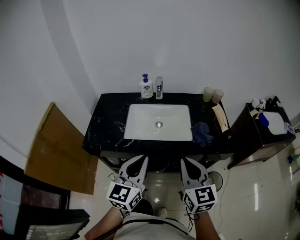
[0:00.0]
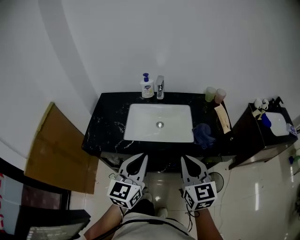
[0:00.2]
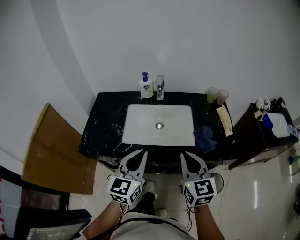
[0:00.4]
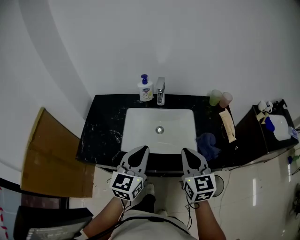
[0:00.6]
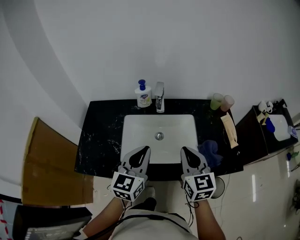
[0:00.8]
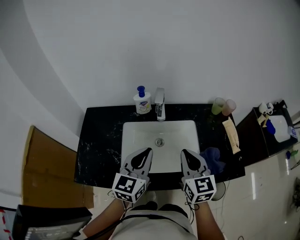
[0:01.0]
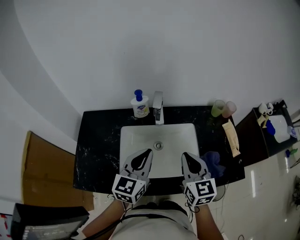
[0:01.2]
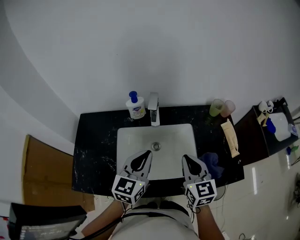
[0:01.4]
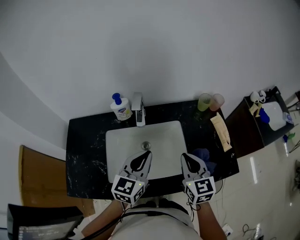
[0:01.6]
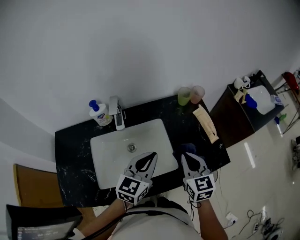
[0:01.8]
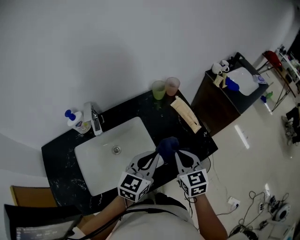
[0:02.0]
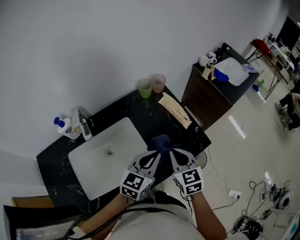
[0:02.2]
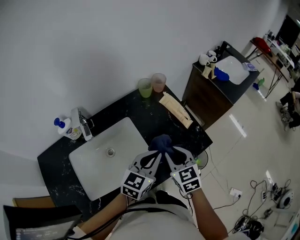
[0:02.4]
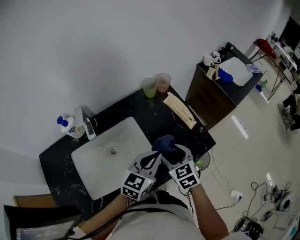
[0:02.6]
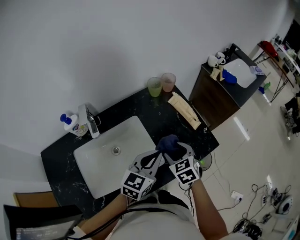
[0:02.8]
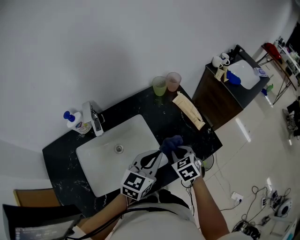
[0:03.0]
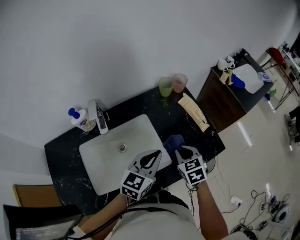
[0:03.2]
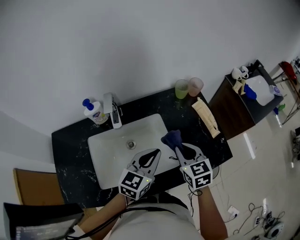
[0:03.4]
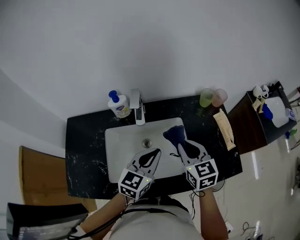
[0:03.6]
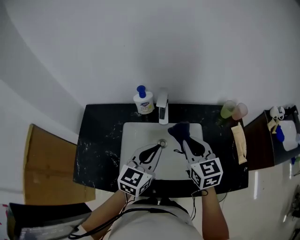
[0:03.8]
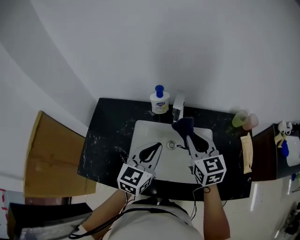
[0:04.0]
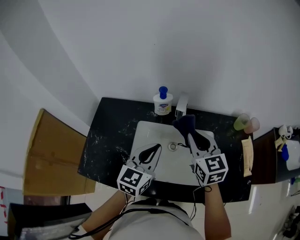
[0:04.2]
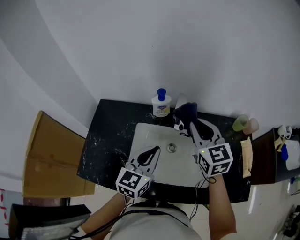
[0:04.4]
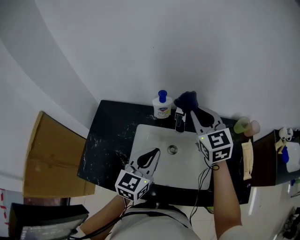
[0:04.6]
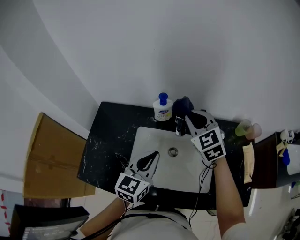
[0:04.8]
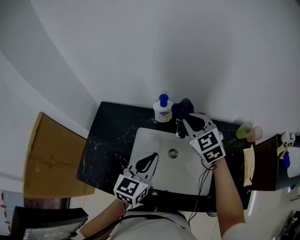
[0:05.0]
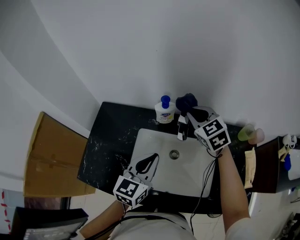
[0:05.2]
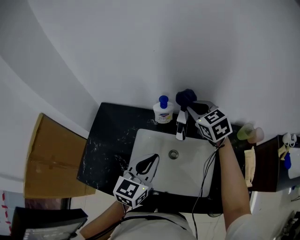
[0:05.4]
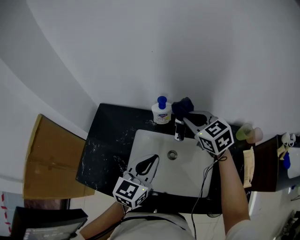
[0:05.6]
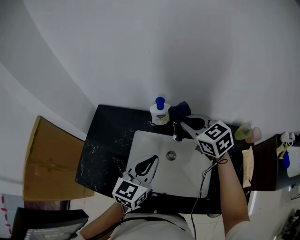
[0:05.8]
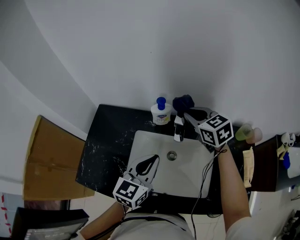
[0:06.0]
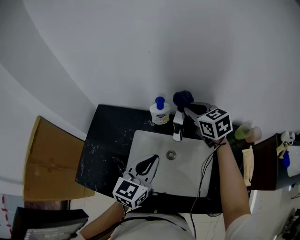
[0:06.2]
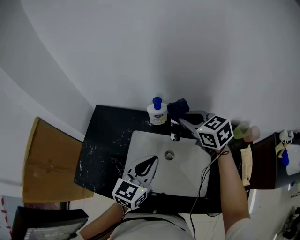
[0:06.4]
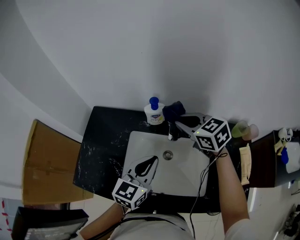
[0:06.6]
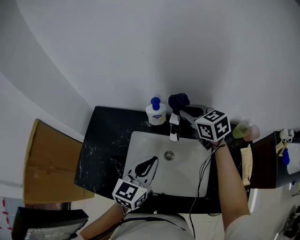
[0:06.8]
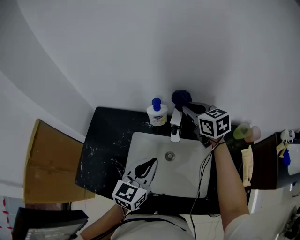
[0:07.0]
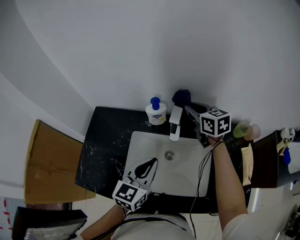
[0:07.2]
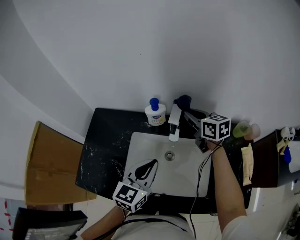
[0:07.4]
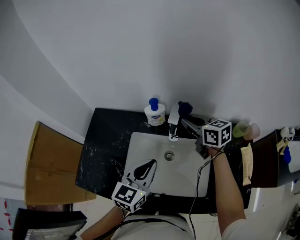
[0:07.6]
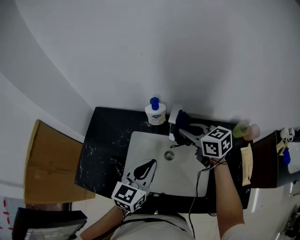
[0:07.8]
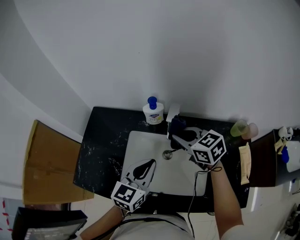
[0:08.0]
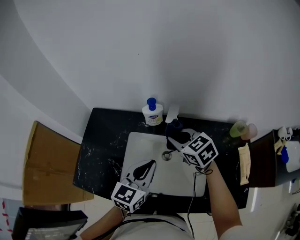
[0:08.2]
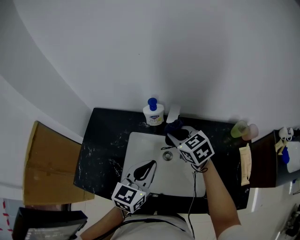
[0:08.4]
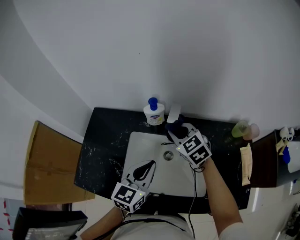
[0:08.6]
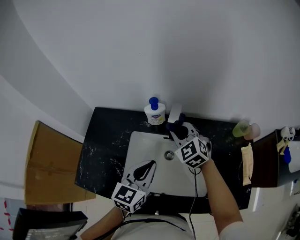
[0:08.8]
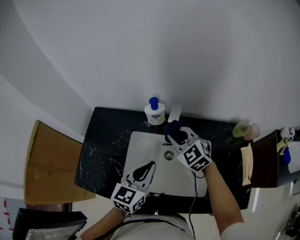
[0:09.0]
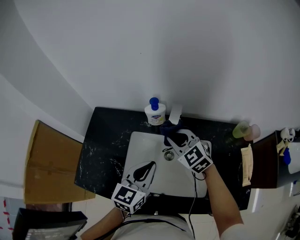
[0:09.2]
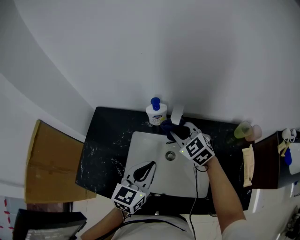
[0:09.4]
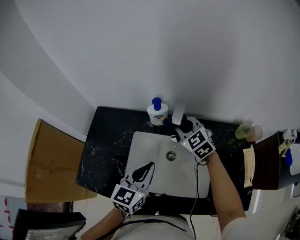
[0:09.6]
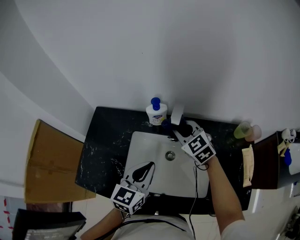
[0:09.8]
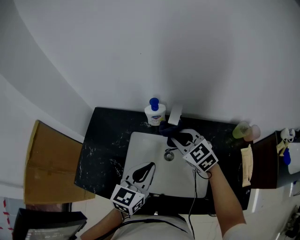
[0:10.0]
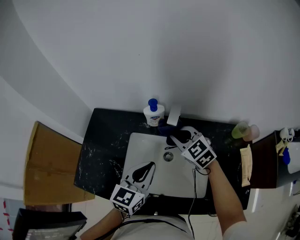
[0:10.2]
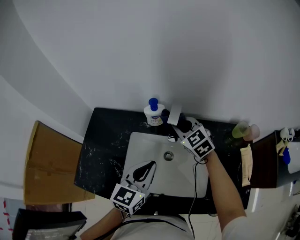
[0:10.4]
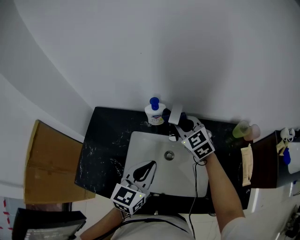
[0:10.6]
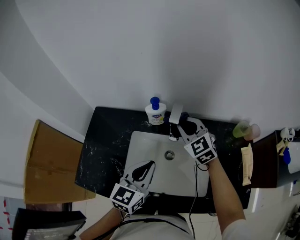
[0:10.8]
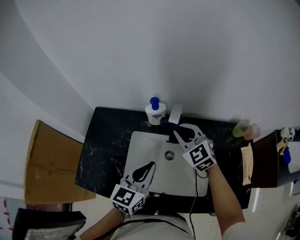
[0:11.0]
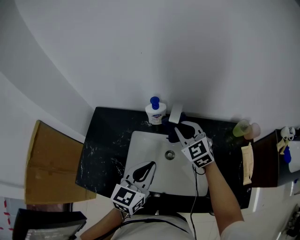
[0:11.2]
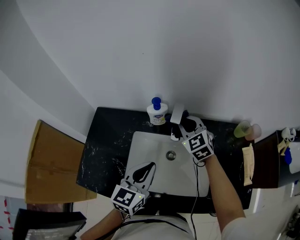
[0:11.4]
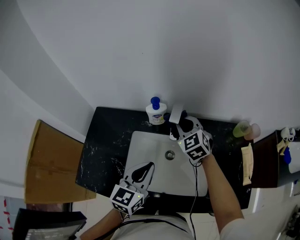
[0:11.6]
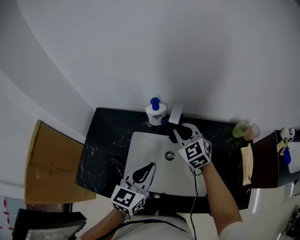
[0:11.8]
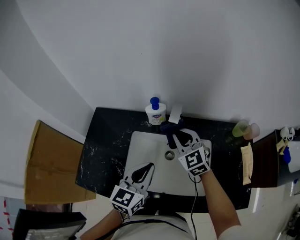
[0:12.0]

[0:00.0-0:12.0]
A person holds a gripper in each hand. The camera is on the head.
0:00.0 to 0:01.6: Both grippers move forward, about 30 cm.
0:01.6 to 0:03.0: The right gripper is displaced downward by some 15 cm, points its fingers about 30 degrees further downward, and opens, then closes once more; the left gripper changes place by about 20 cm, and swivels approximately 30 degrees.
0:03.0 to 0:04.4: The right gripper ends up about 35 cm from where it was, and angles its fingers upward, by about 40 degrees. Meanwhile the left gripper changes place by roughly 30 cm, and changes its angle by some 40 degrees.
0:04.4 to 0:06.0: The right gripper swings forward and backward, some 15 cm each way, with 2 reversals, and turns by about 20 degrees.
0:06.0 to 0:07.6: The right gripper moves forward and backward over some 5 cm, changing direction 2 times, and swivels some 20 degrees.
0:07.6 to 0:09.0: The right gripper goes some 10 cm to the left and backward, and twists approximately 40 degrees counterclockwise, seen from behind.
0:09.0 to 0:10.4: The right gripper swings forward and backward, about 5 cm each way, with 2 reversals.
0:10.4 to 0:12.0: The right gripper goes forward and backward, roughly 5 cm each way, reversing 2 times.

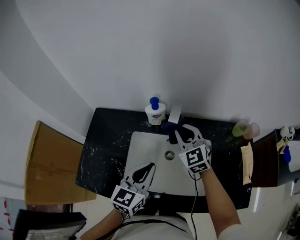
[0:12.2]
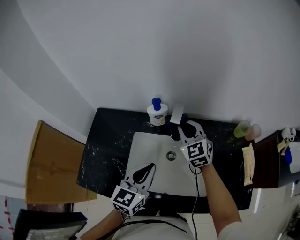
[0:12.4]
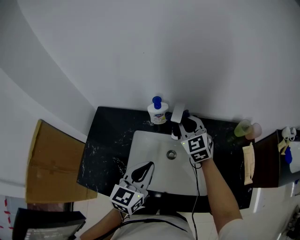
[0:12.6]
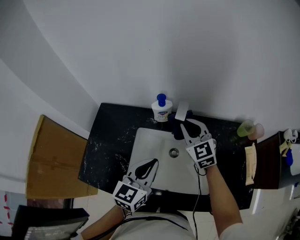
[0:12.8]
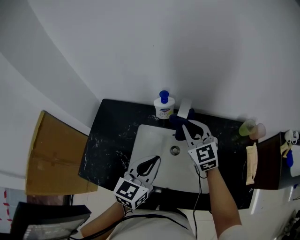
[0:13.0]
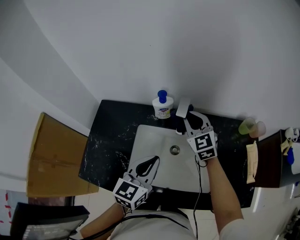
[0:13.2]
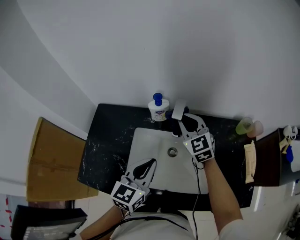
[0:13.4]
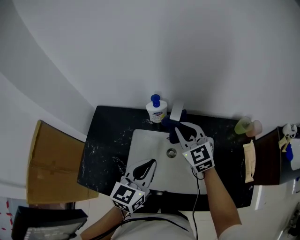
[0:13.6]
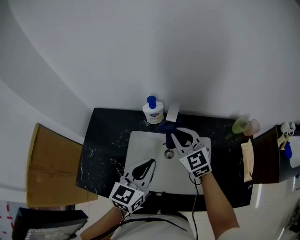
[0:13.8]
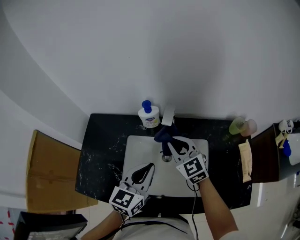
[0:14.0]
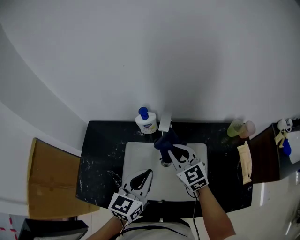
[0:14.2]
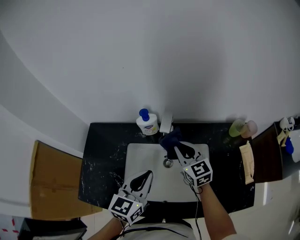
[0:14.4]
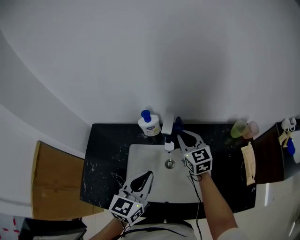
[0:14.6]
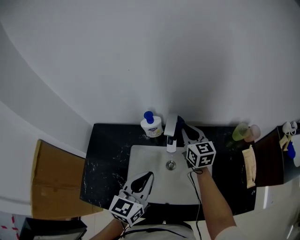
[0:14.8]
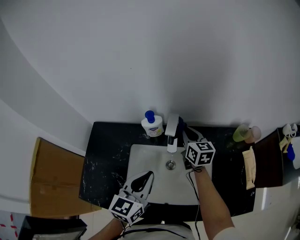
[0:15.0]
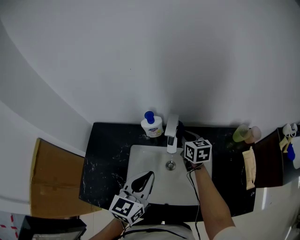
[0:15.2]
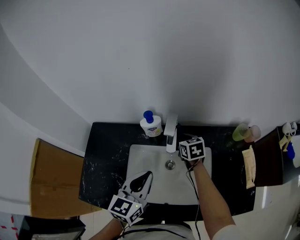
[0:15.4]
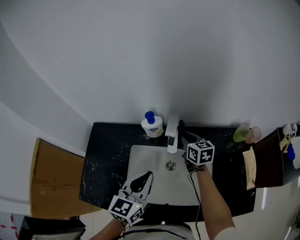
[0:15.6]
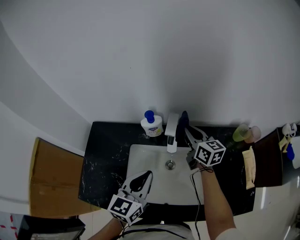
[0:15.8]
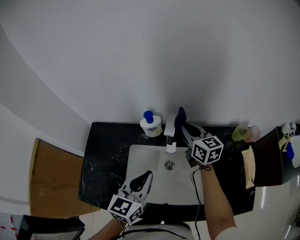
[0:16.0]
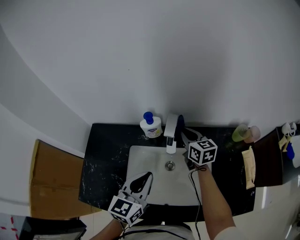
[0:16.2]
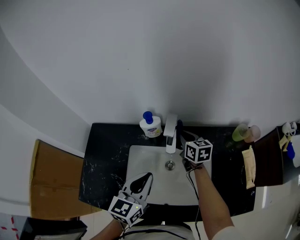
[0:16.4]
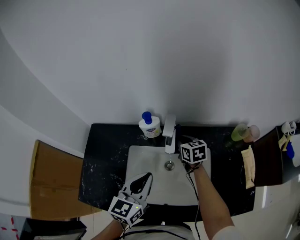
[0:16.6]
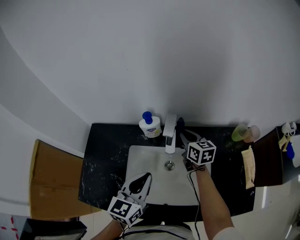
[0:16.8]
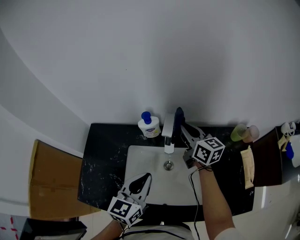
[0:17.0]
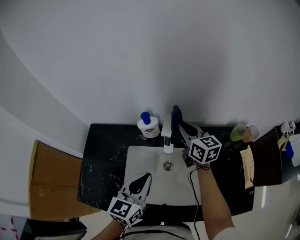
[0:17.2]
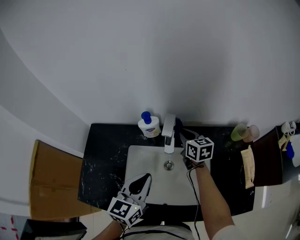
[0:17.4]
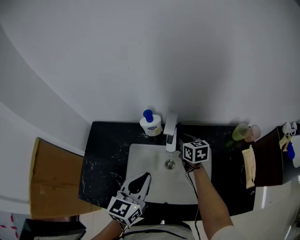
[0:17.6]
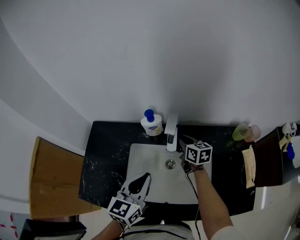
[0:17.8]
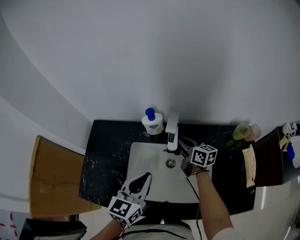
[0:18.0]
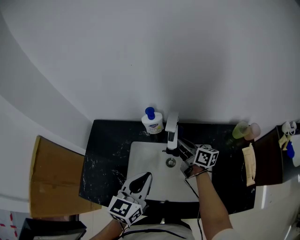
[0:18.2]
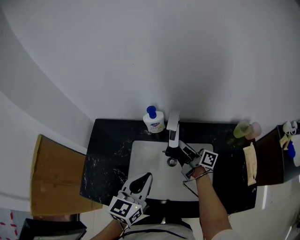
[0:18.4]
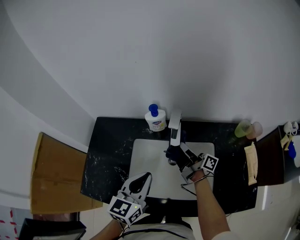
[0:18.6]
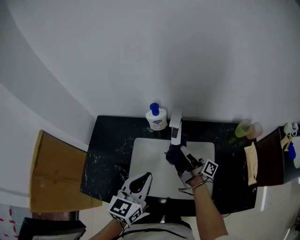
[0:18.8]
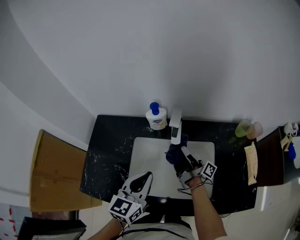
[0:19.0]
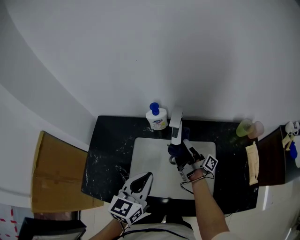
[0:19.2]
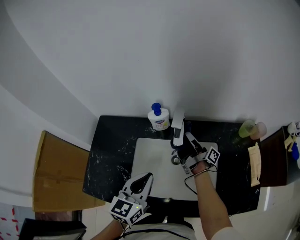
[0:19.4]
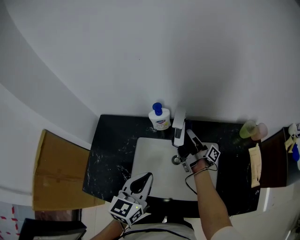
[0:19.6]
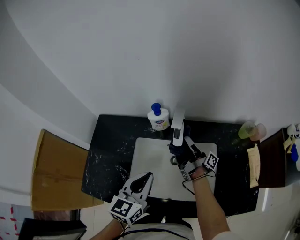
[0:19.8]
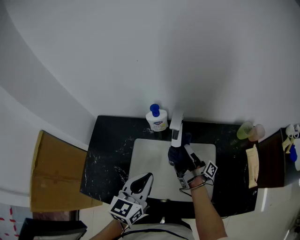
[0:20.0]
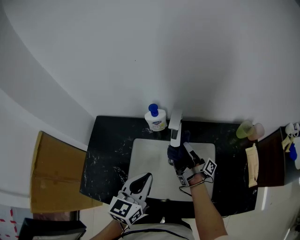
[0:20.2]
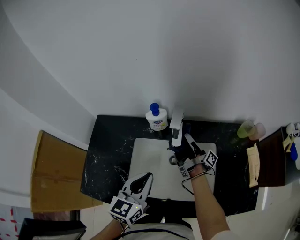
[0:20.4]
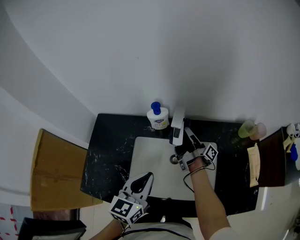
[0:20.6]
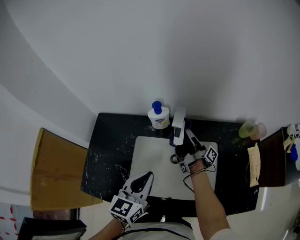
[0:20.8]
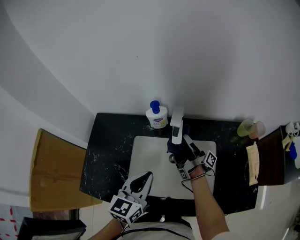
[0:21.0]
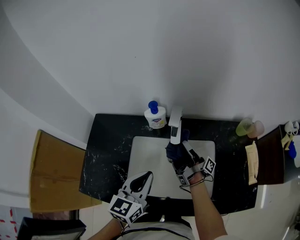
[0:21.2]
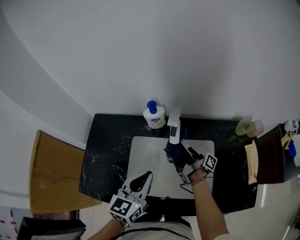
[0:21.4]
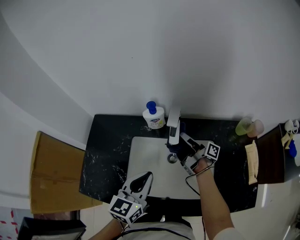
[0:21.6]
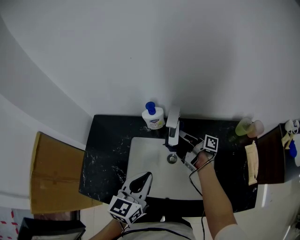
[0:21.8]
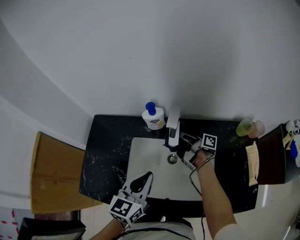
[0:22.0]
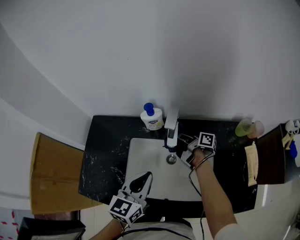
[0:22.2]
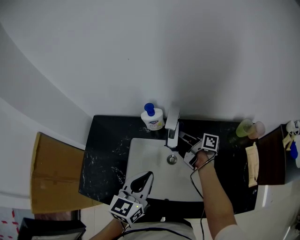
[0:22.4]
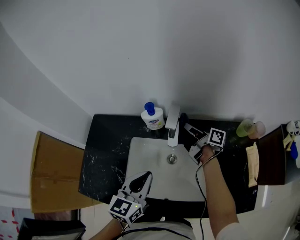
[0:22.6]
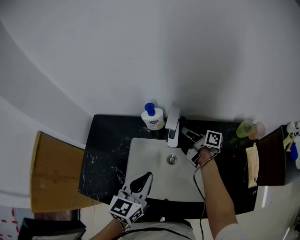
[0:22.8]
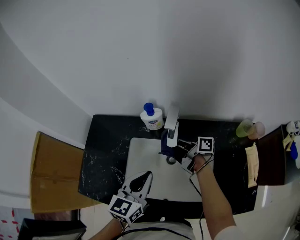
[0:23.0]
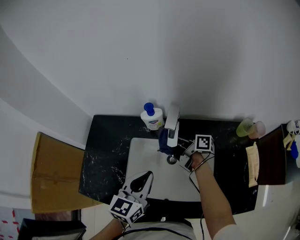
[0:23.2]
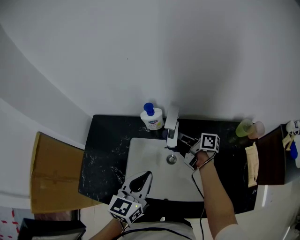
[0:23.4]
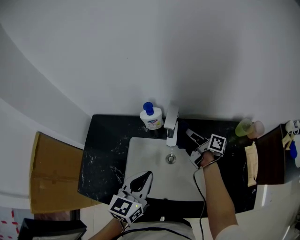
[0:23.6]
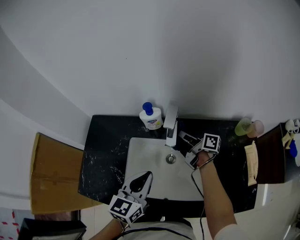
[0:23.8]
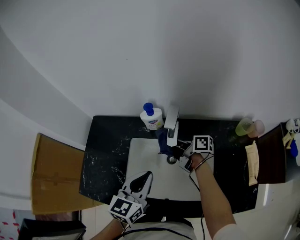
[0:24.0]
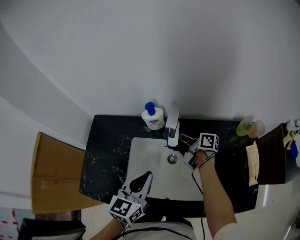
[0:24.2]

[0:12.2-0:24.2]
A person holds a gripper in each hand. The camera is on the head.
0:12.2 to 0:13.8: The grippers move only a little.
0:13.8 to 0:15.2: The right gripper travels forward, downward and to the right by some 15 cm, and turns by some 40 degrees.
0:15.2 to 0:16.6: The right gripper reaches roughly 10 cm upward, then returns.
0:16.6 to 0:18.2: The right gripper moves about 15 cm upward and comes back, and points its fingers roughly 30 degrees further upward.
0:18.2 to 0:19.8: The right gripper moves approximately 5 cm backward and comes back, and rolls clockwise, seen from behind, by approximately 50 degrees.
0:19.8 to 0:21.2: There are only small adjustments of the grippers.
0:21.2 to 0:22.6: The right gripper is displaced forward by about 10 cm, and turns by about 40 degrees.
0:22.6 to 0:24.2: The right gripper moves left and right over approximately 10 cm, changing direction 2 times.
